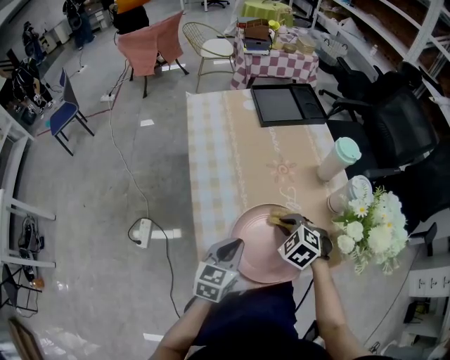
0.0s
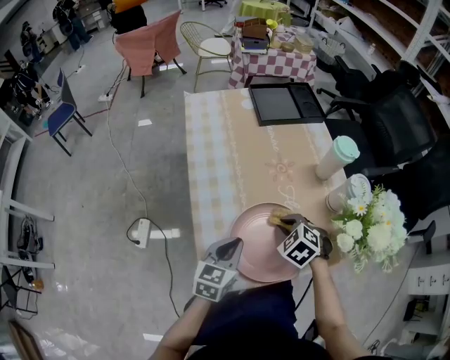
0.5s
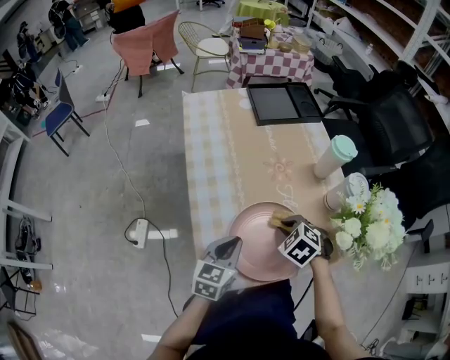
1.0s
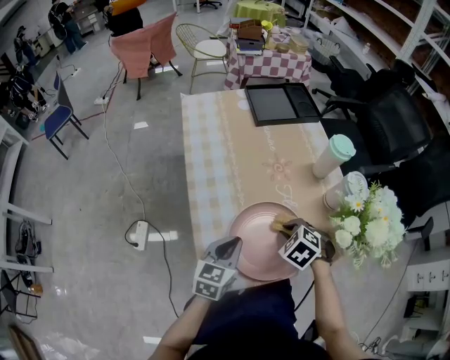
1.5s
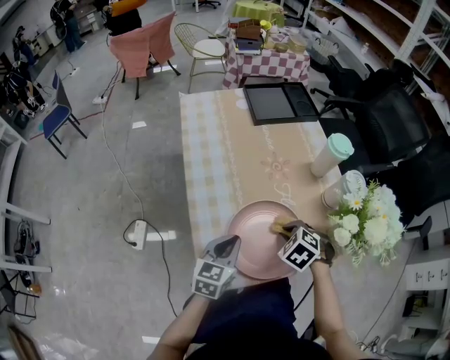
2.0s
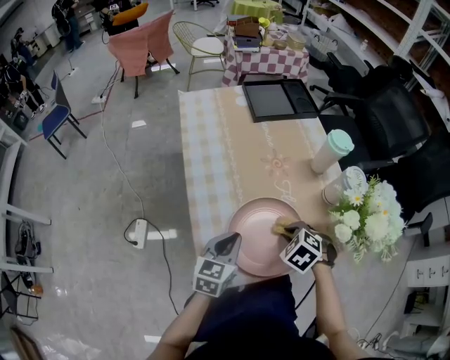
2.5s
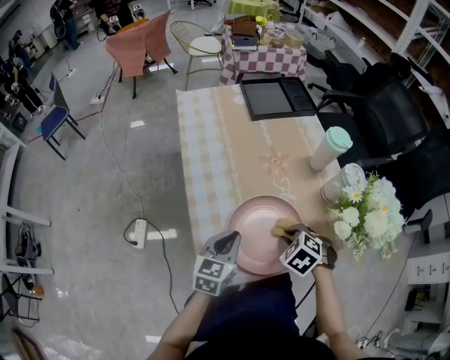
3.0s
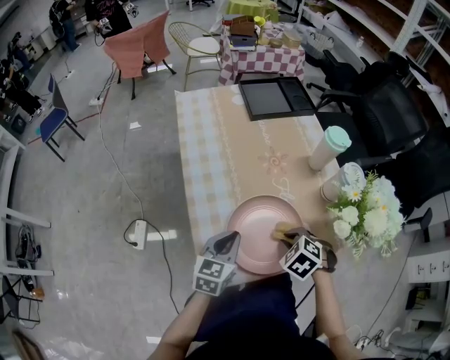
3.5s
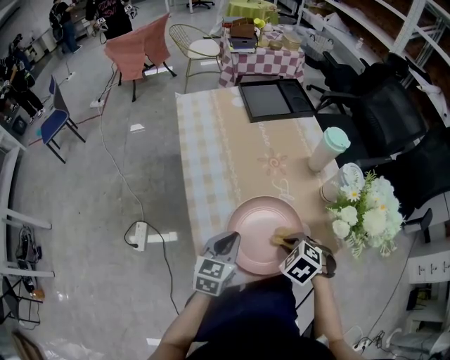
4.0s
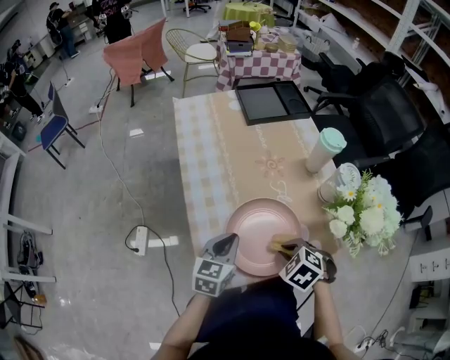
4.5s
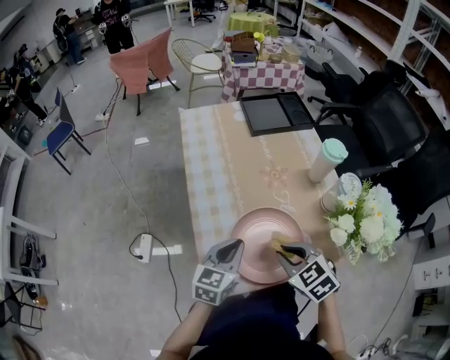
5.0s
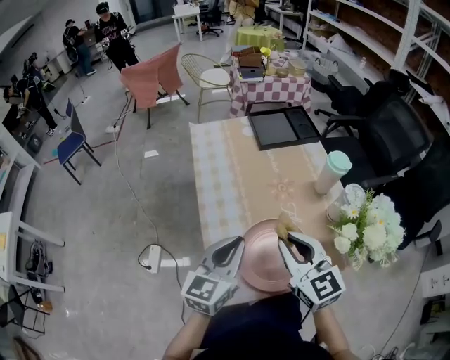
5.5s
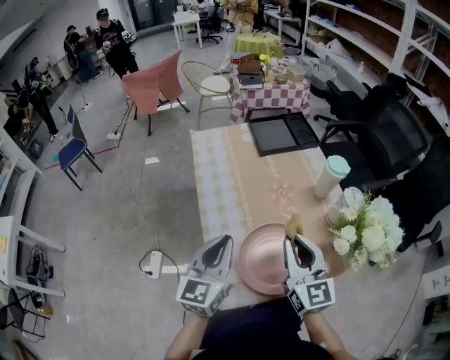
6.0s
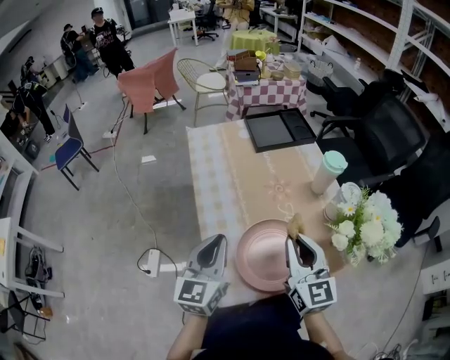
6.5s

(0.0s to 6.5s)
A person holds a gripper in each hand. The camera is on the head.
0.0s - 2.0s: The grippers stay close to where they were, moving slightly.
2.0s - 4.5s: The right gripper heads backward, covering approximately 5 cm.
4.5s - 6.5s: The left gripper goes some 15 cm upward and to the left, and turns by approximately 20 degrees. The right gripper travels upward by about 20 cm, and angles its fingers upward, by some 70 degrees.

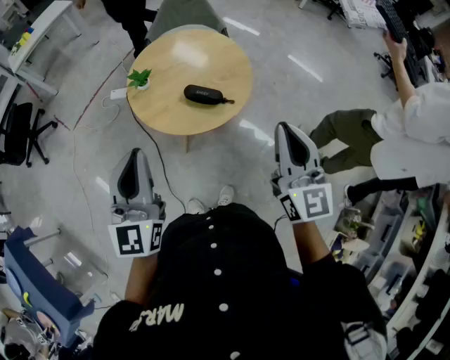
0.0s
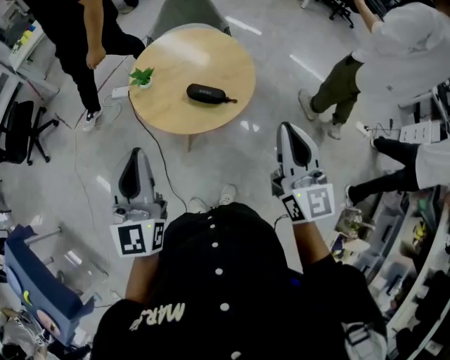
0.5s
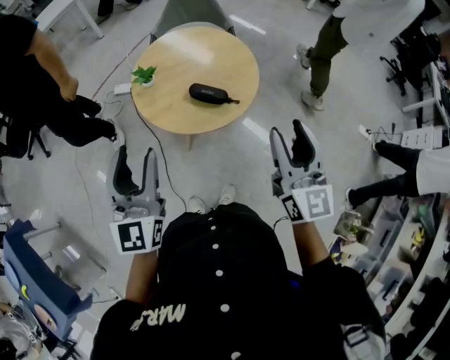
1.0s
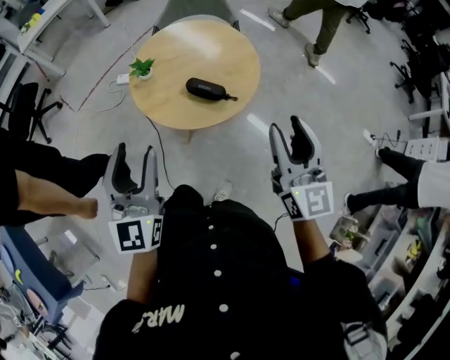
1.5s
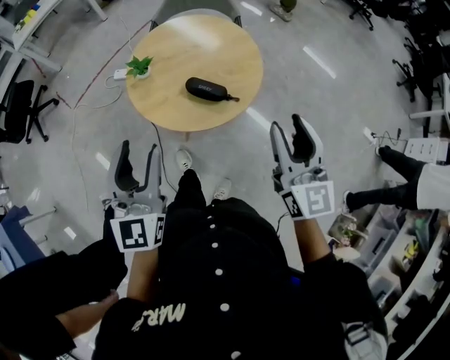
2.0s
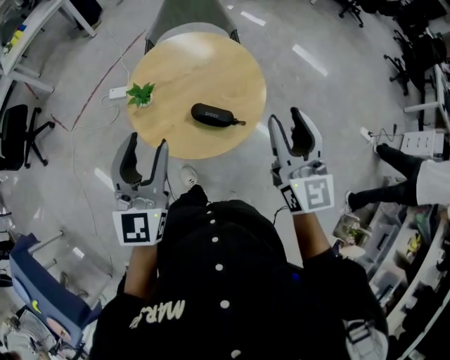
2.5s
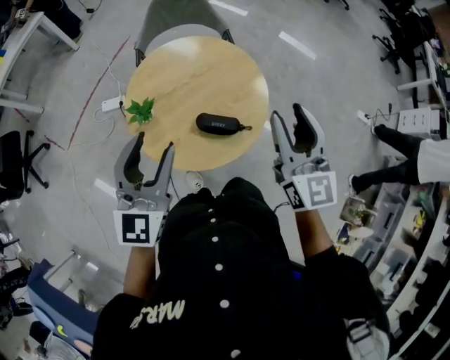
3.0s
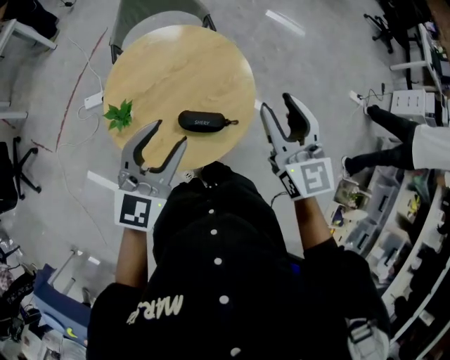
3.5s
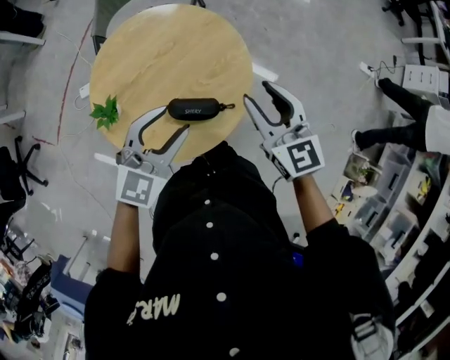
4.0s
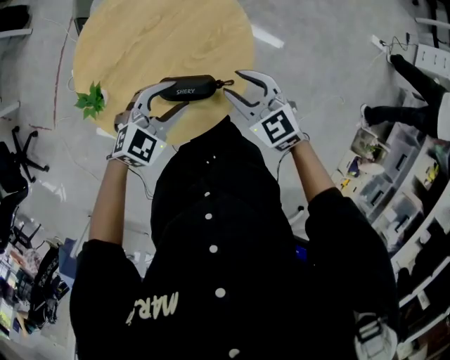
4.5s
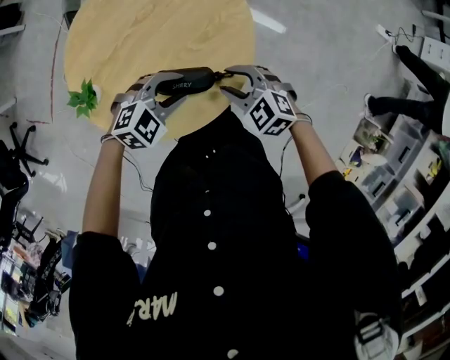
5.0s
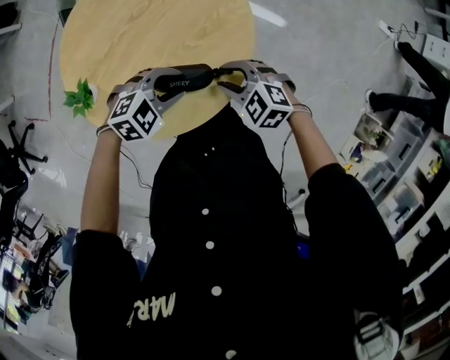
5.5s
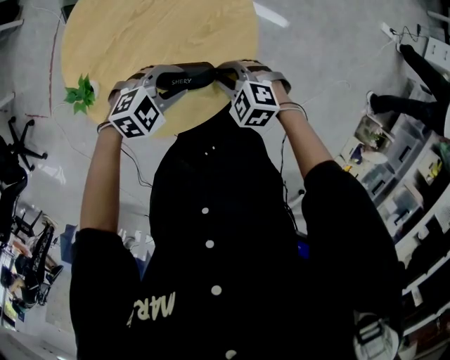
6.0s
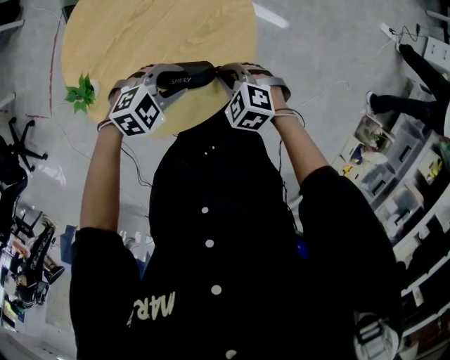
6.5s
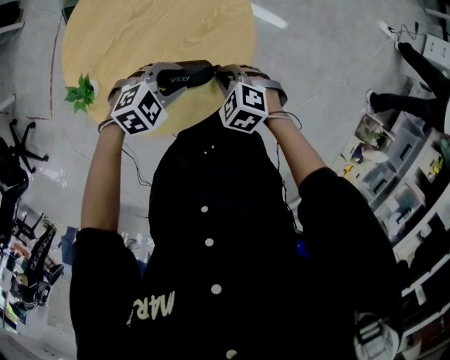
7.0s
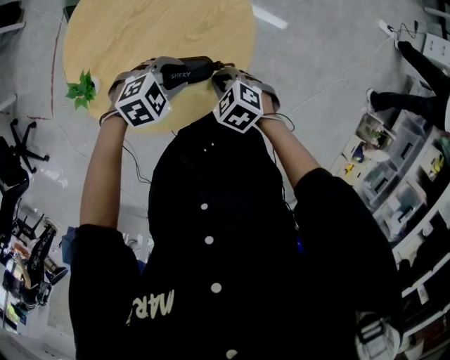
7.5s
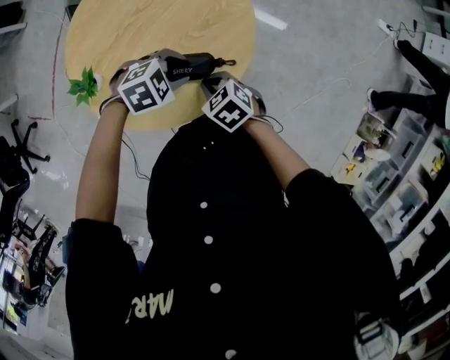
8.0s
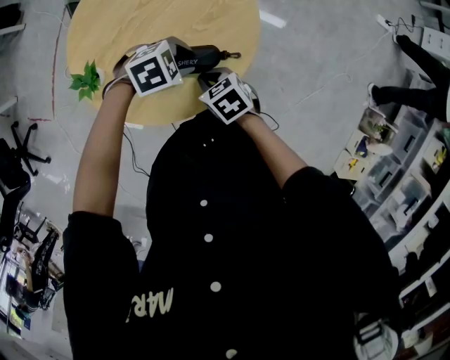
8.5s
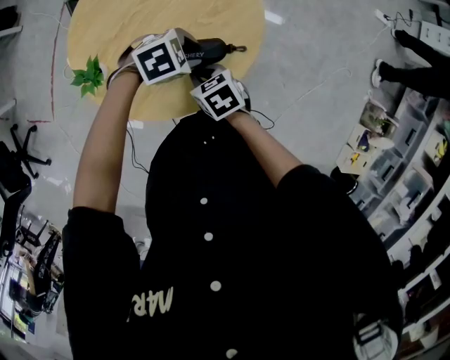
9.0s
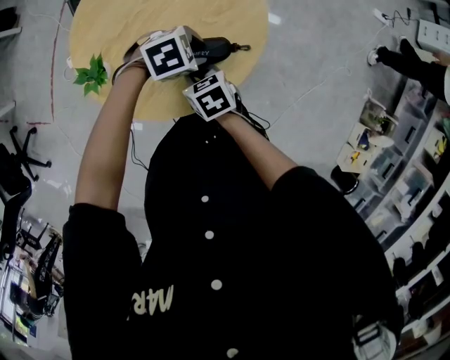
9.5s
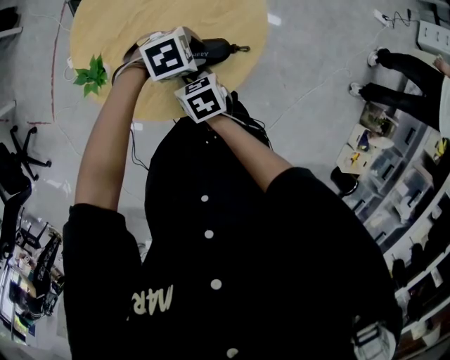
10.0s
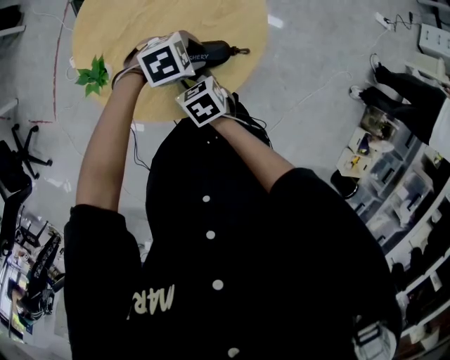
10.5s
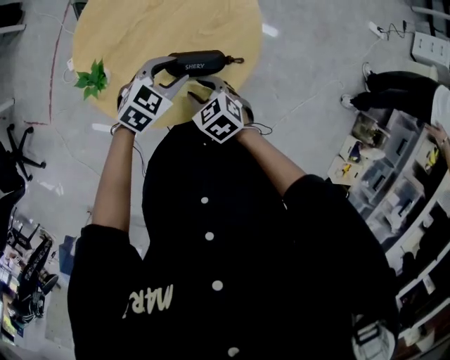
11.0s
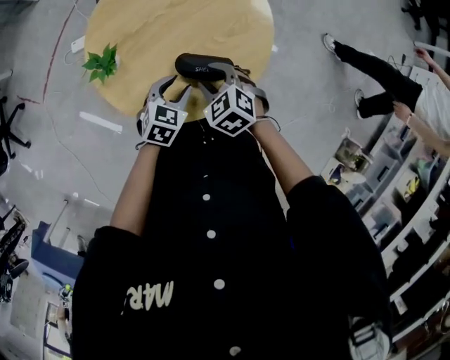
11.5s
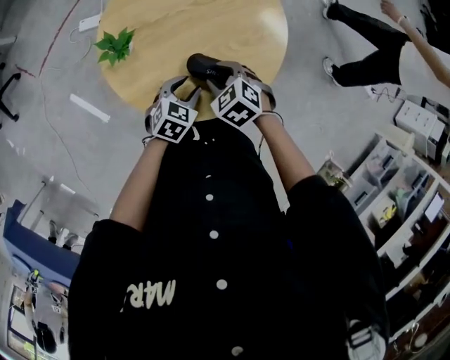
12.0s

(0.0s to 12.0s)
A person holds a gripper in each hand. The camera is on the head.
0.0s - 2.0s: The two grippers go approximately 5 cm forward. The left gripper opens up. The right gripper opens its fingers.
2.0s - 4.0s: The right gripper ends up roughly 25 cm from where it was. Meanwhile the left gripper ends up approximately 30 cm from where it was, and changes its angle by some 50 degrees.
4.0s - 6.0s: The two grippers go some 25 cm downward. The right gripper points its fingers approximately 40 degrees further downward, and closes up. Meanwhile the left gripper turns by roughly 50 degrees.
6.0s - 8.0s: The right gripper changes place by about 5 cm, and turns by some 30 degrees.
8.0s - 10.0s: The right gripper ends up about 10 cm from where it was, and turns by about 30 degrees.
10.0s - 12.0s: The left gripper shifts by approximately 10 cm, and rotates approximately 60 degrees; the right gripper moves about 5 cm, rolls counterclockwise, seen from behind, by approximately 60 degrees, and opens up.

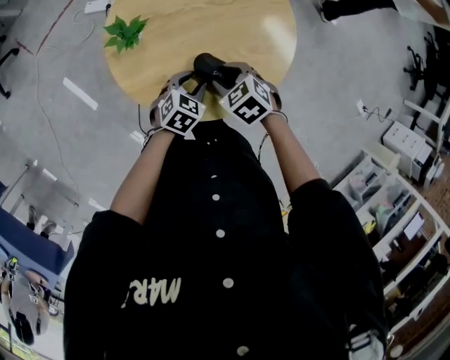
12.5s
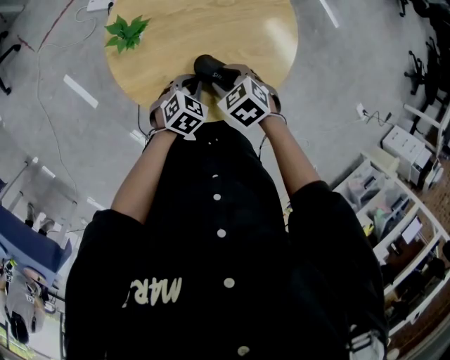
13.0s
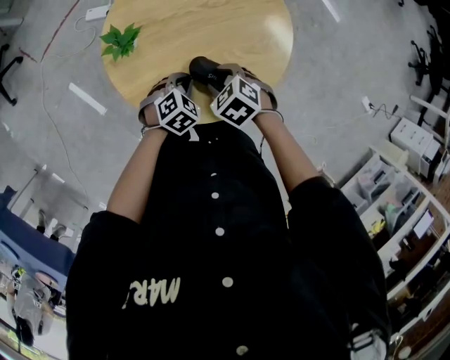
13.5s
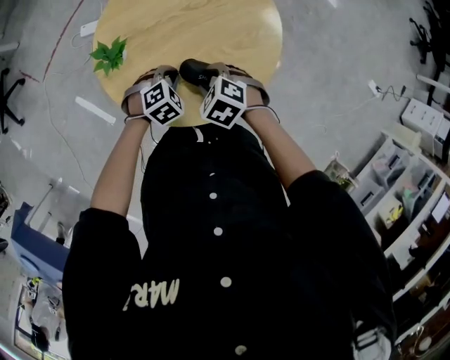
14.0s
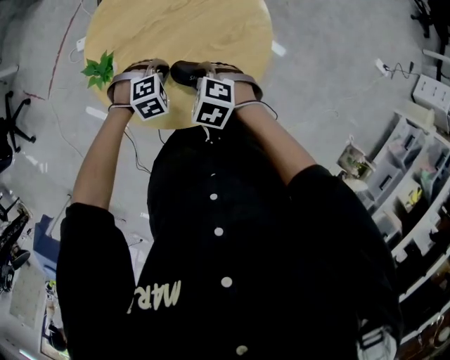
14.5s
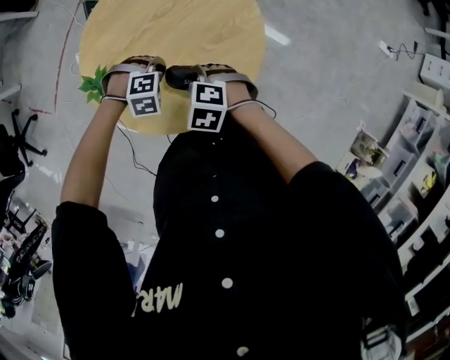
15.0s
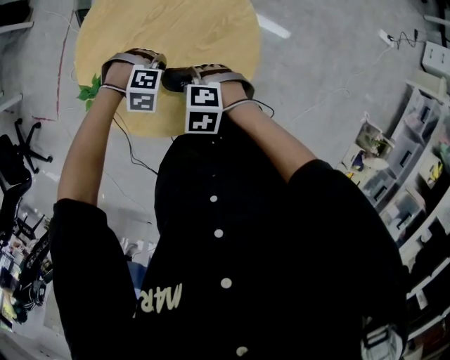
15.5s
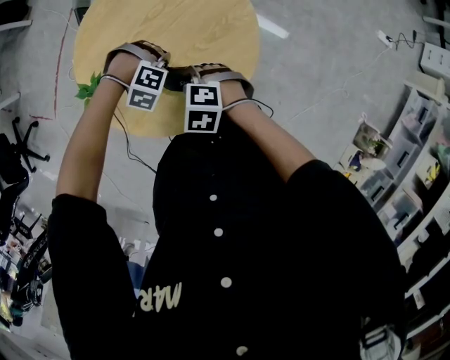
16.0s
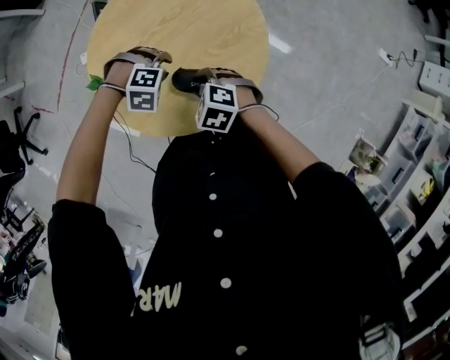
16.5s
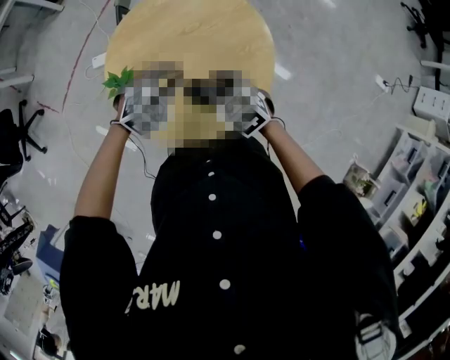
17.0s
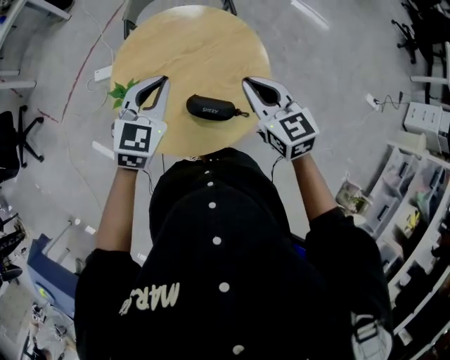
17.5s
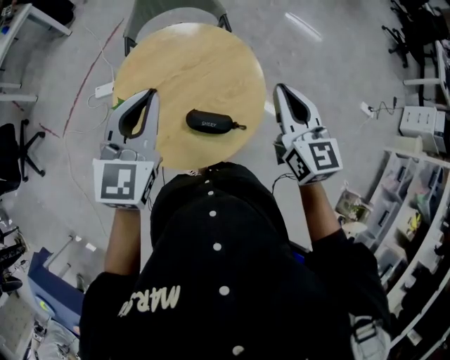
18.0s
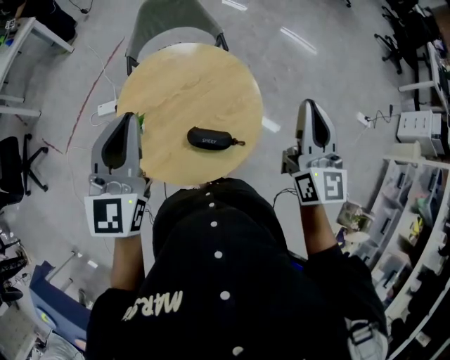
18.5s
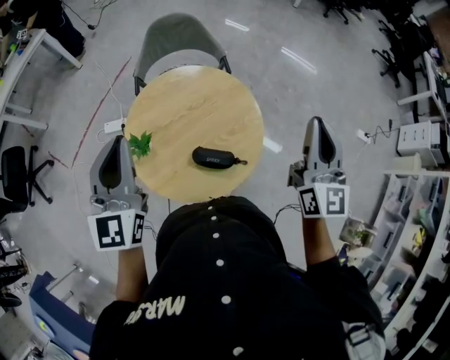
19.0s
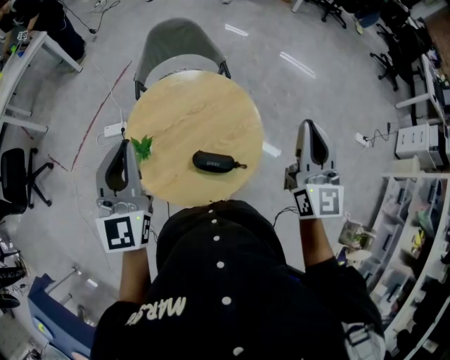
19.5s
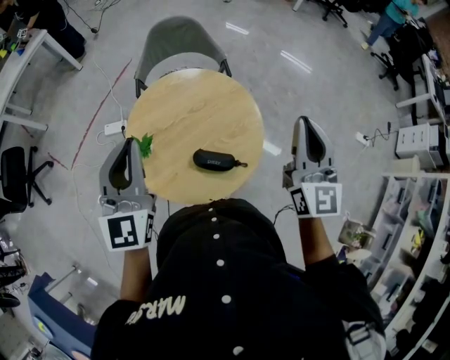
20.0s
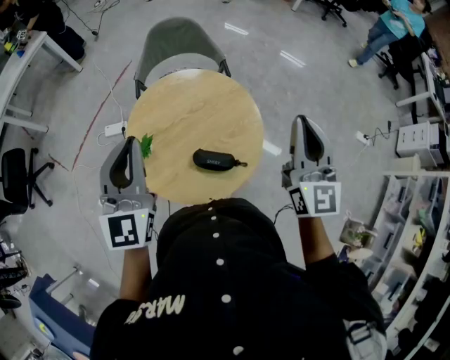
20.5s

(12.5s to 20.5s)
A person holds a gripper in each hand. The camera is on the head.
12.5s - 14.5s: The left gripper shifts some 5 cm forward, rolls clockwise, seen from behind, by roughly 60 degrees, and closes its fingers.
14.5s - 16.5s: The left gripper rotates some 30 degrees, and opens.
16.5s - 18.5s: Both grippers travel together upward, some 40 cm. The right gripper angles its fingers upward, by some 70 degrees, and closes its fingers, while the left gripper points its fingers about 80 degrees further upward, and closes up.
18.5s - 20.5s: The grippers stay close to where they were, moving slightly.
